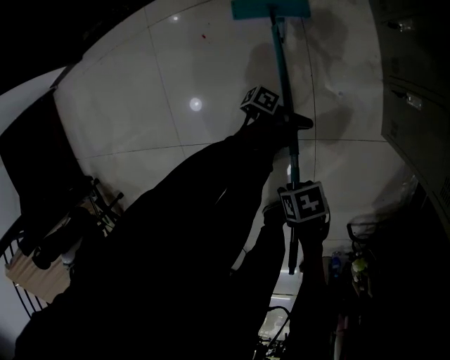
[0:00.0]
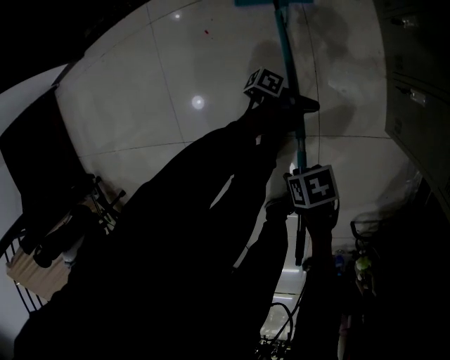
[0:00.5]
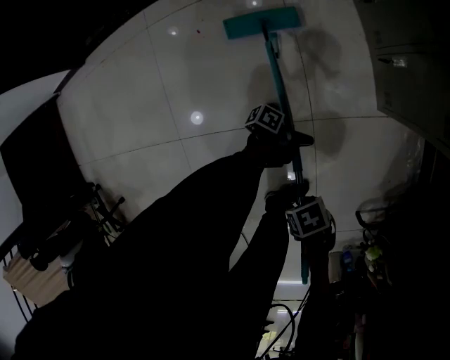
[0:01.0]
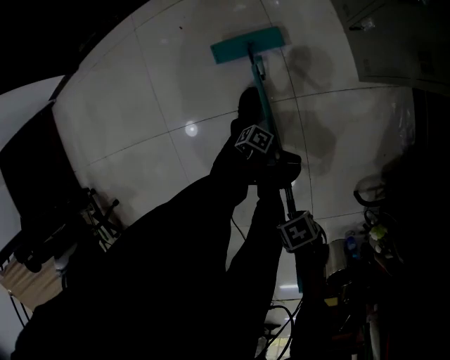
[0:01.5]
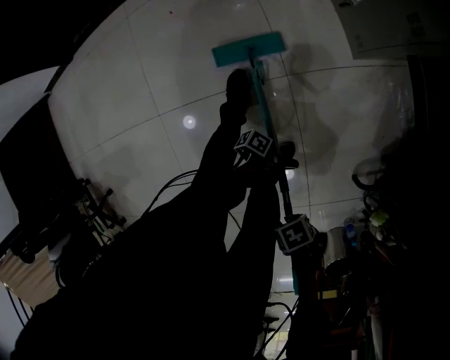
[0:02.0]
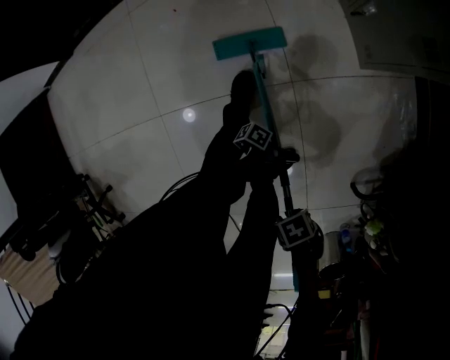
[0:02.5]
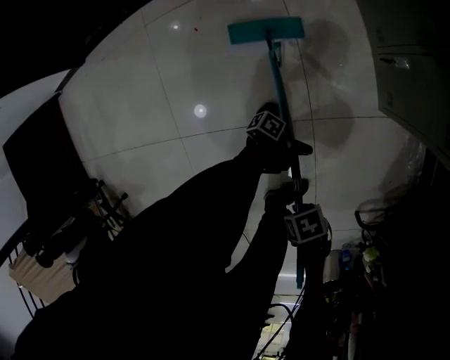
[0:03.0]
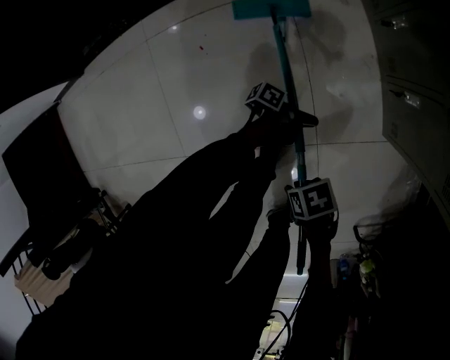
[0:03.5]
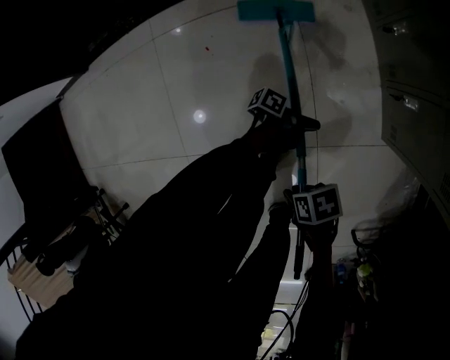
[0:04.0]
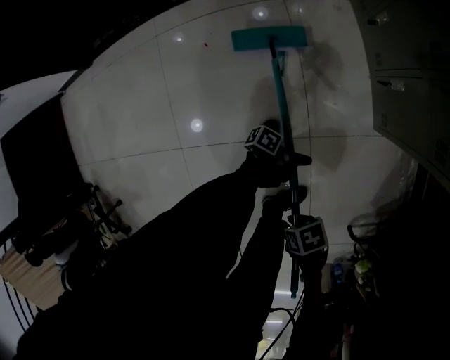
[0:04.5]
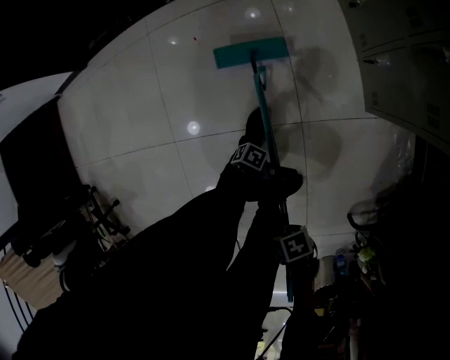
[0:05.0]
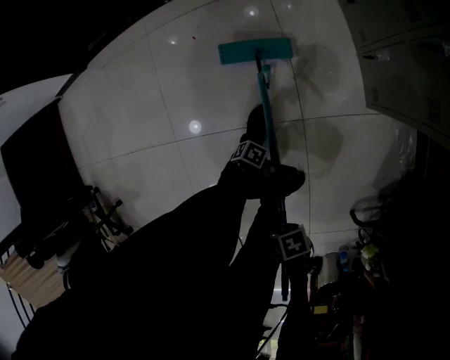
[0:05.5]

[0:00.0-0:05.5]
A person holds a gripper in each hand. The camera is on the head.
0:00.0 to 0:02.0: The pair of grippers is taken forward and to the left, some 50 cm.
0:02.0 to 0:03.5: The two grippers travel together, backward and to the right, roughly 50 cm.
0:03.5 to 0:05.5: Both grippers travel together to the left and forward, roughly 30 cm.

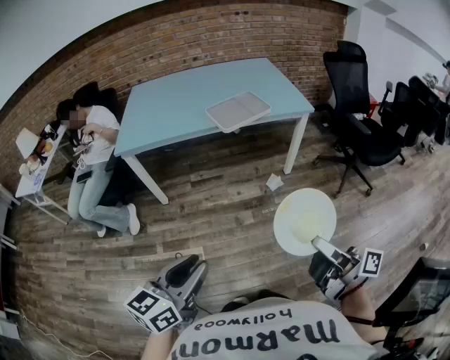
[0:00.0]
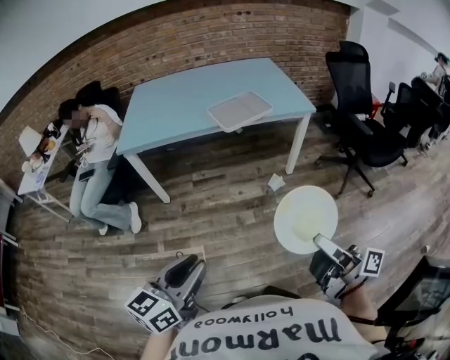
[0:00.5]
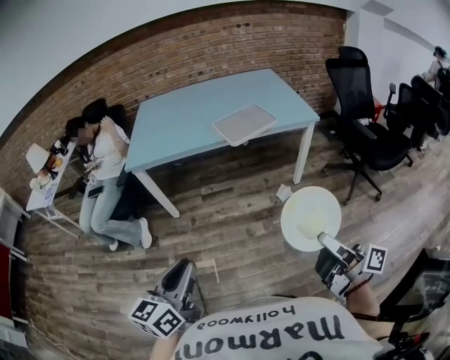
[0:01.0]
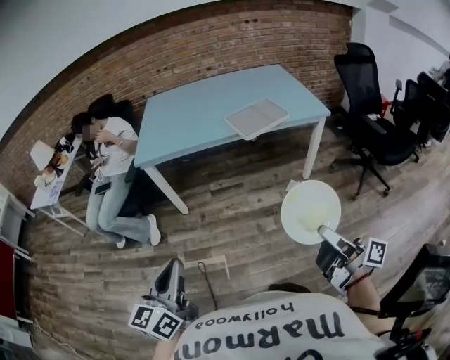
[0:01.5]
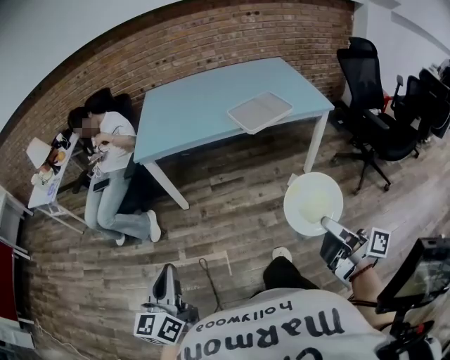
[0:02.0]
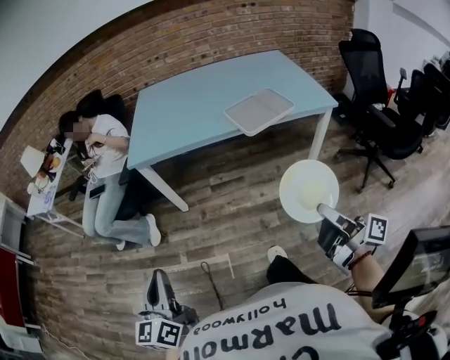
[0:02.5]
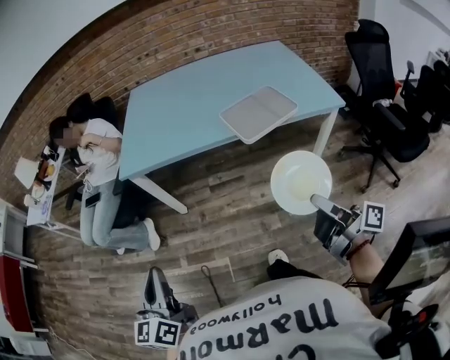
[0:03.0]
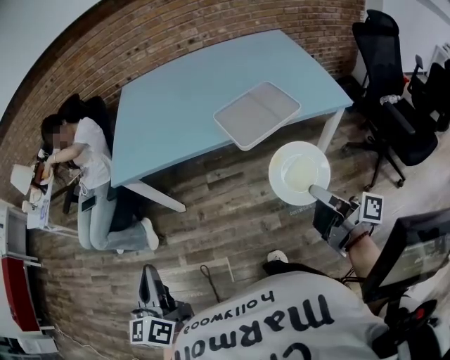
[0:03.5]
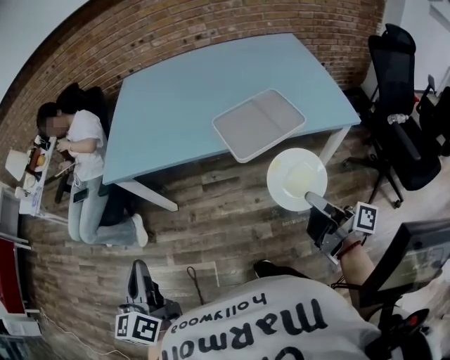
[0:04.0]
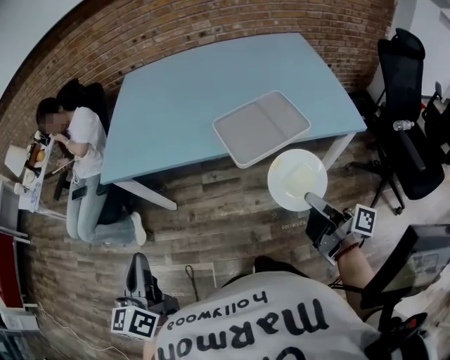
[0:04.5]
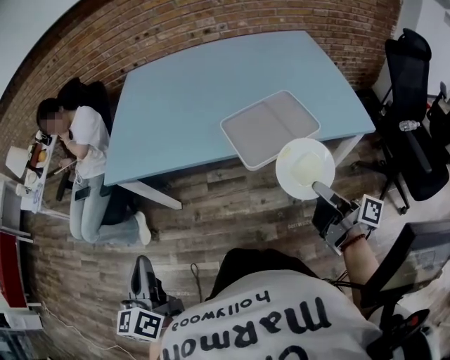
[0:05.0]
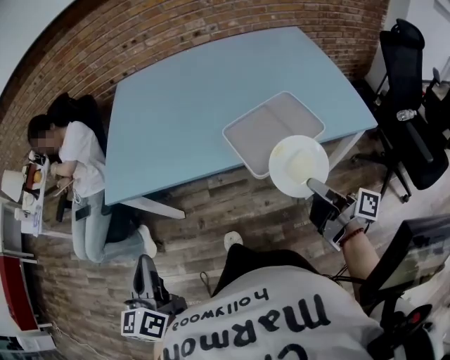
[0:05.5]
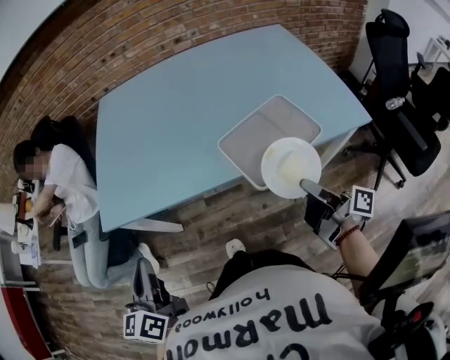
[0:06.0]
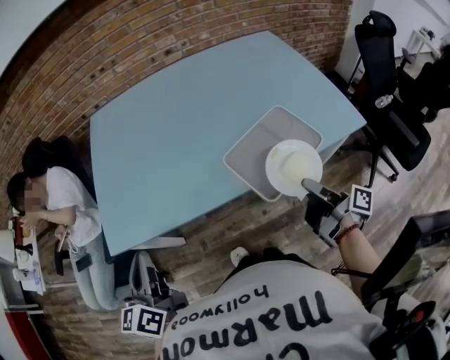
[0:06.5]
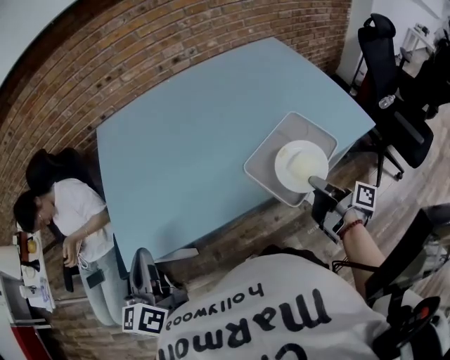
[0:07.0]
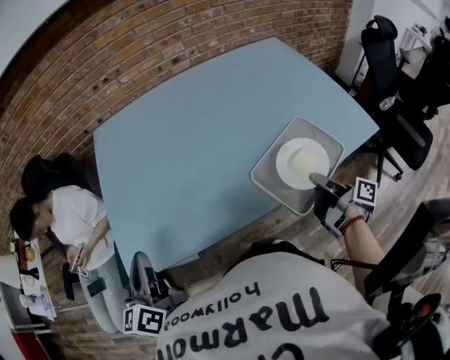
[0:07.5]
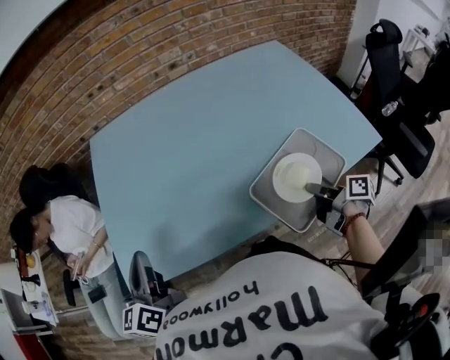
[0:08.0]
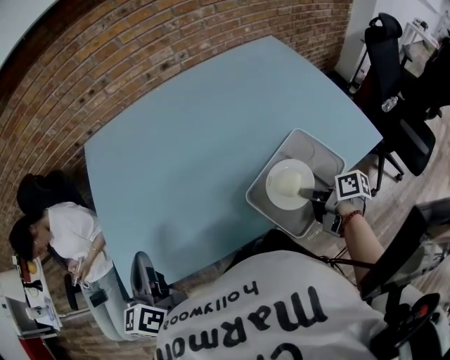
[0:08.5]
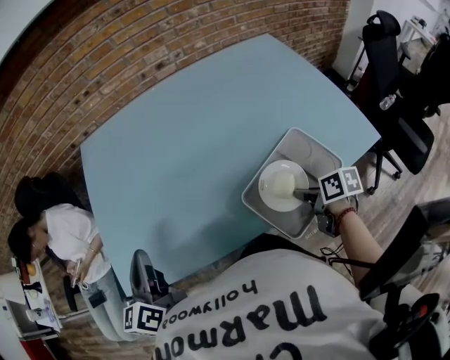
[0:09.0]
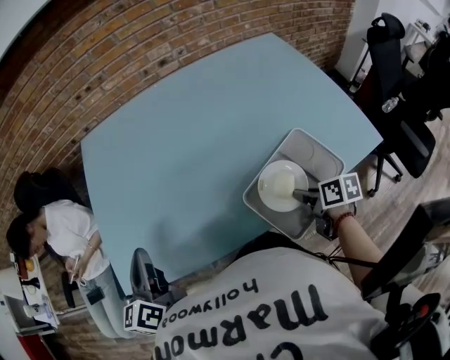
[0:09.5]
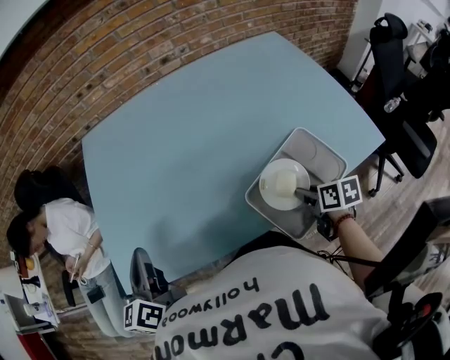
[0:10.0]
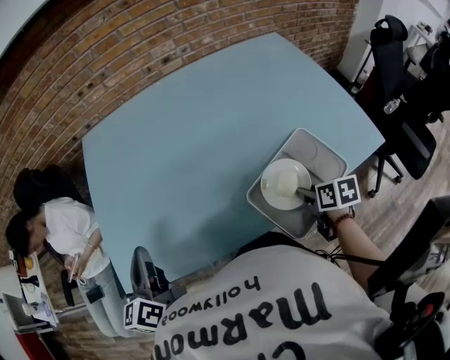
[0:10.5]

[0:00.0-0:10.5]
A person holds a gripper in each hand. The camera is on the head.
0:00.0 to 0:02.0: The left gripper shifts about 20 cm to the left, rotates some 30 degrees, and closes its fingers, while the right gripper travels forward and to the left by roughly 10 cm.
0:02.0 to 0:04.0: The two grippers go some 35 cm forward and to the right.
0:04.0 to 0:06.5: The right gripper heads forward, covering approximately 20 cm. Meanwhile the left gripper goes approximately 30 cm forward.
0:06.5 to 0:08.5: The left gripper heads forward, covering some 15 cm, while the right gripper moves forward and downward, approximately 15 cm, and angles its fingers downward, by roughly 30 degrees.
0:08.5 to 0:10.5: The right gripper changes its angle by some 40 degrees.

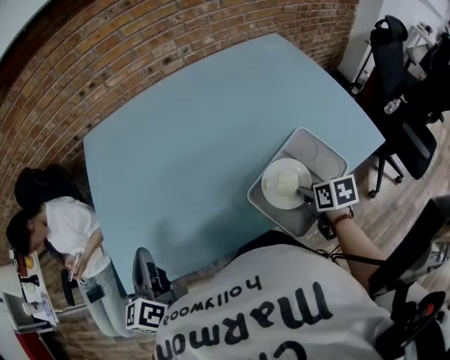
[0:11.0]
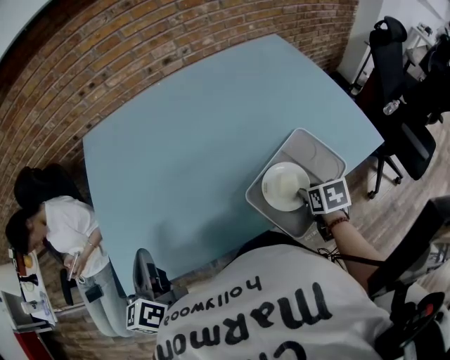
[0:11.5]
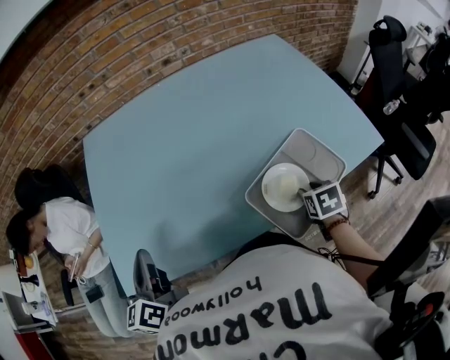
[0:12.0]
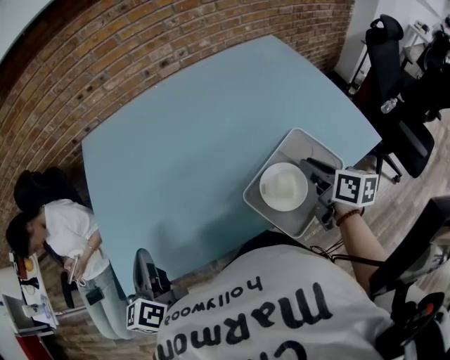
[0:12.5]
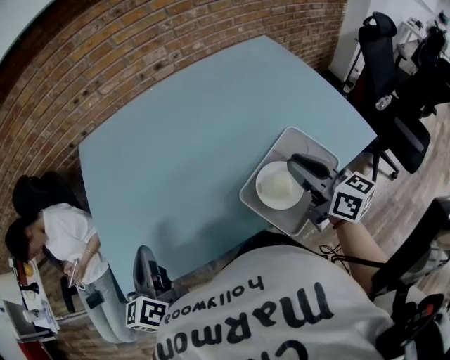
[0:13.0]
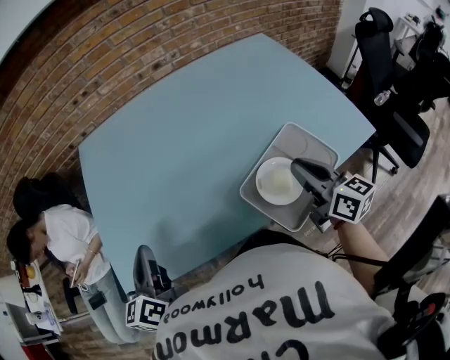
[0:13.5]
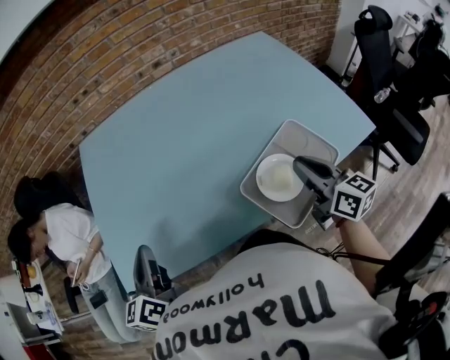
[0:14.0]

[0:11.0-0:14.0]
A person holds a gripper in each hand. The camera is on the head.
0:11.0 to 0:12.5: The right gripper moves upward, about 10 cm, and points its fingers roughly 30 degrees further upward.
0:12.5 to 0:14.0: The right gripper moves approximately 5 cm, and changes its angle by some 20 degrees.

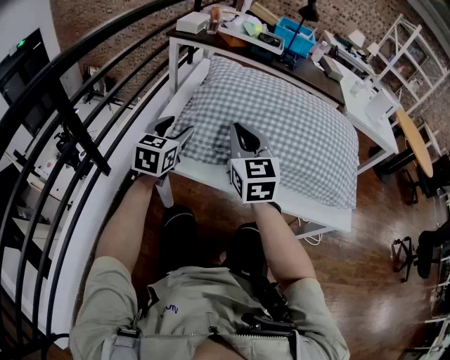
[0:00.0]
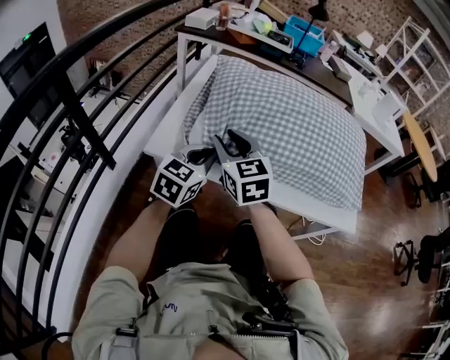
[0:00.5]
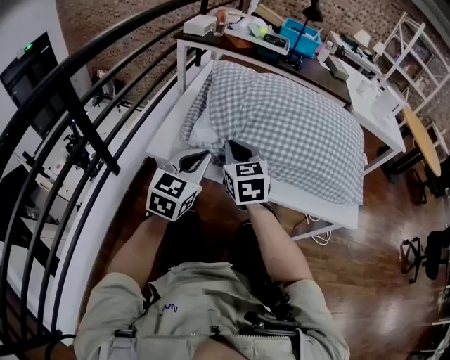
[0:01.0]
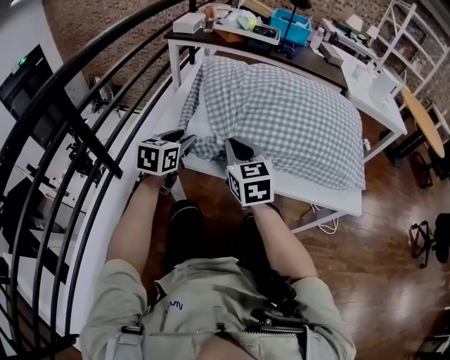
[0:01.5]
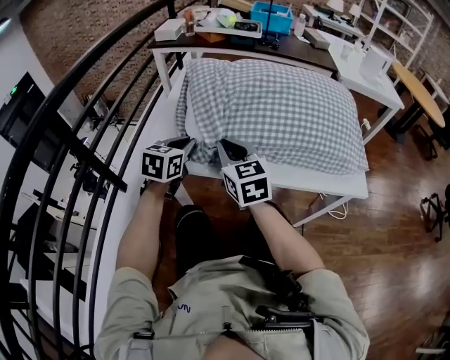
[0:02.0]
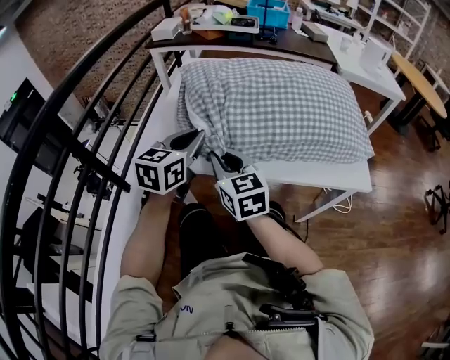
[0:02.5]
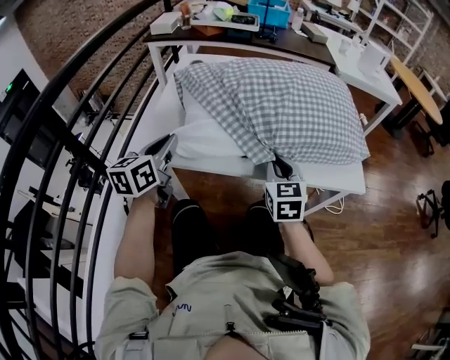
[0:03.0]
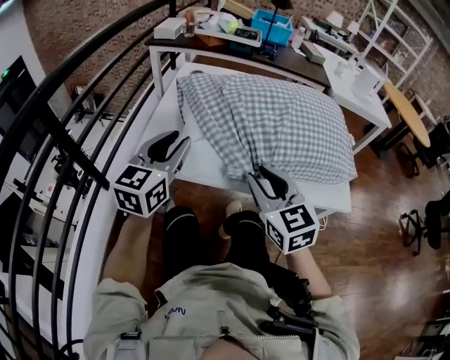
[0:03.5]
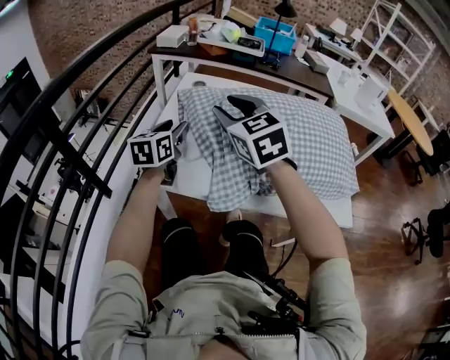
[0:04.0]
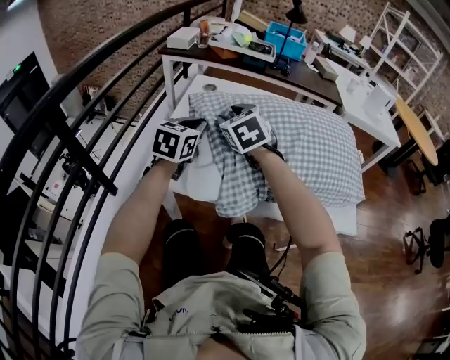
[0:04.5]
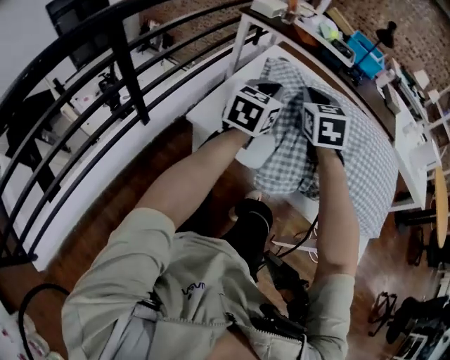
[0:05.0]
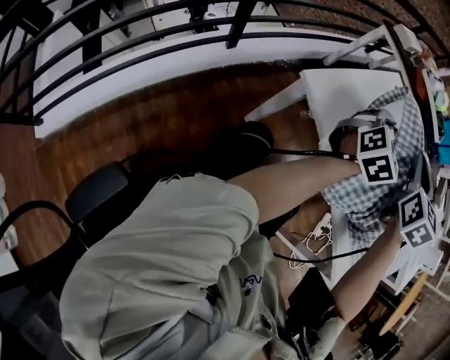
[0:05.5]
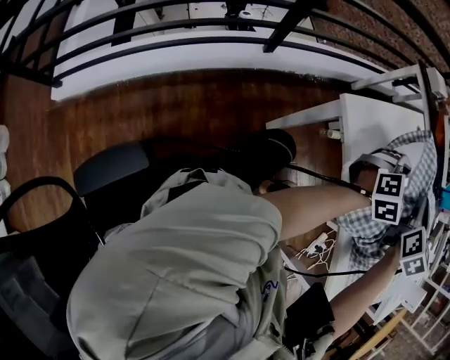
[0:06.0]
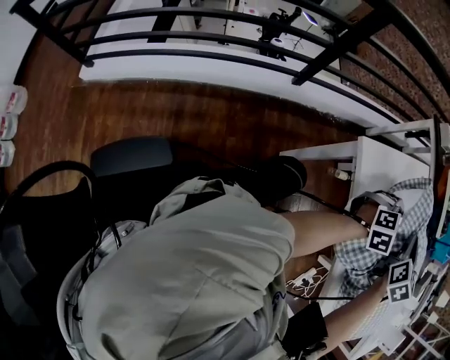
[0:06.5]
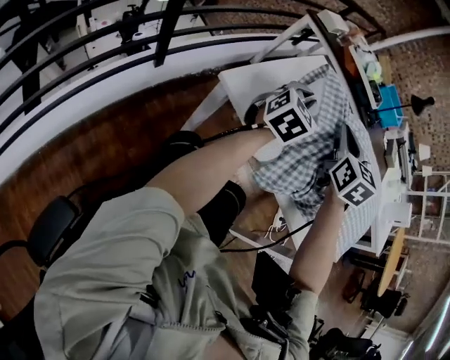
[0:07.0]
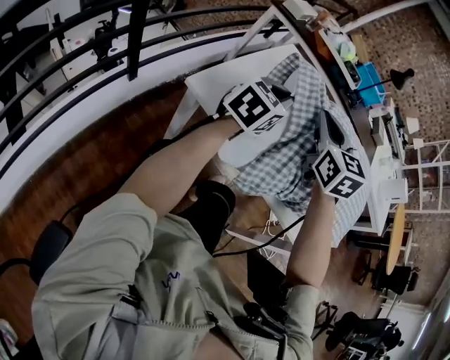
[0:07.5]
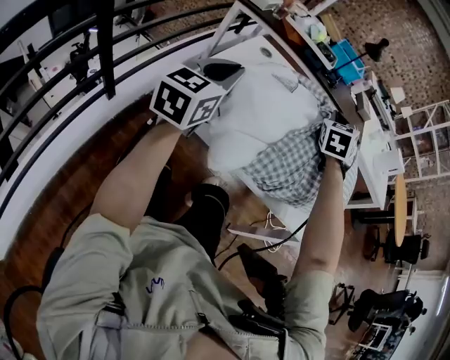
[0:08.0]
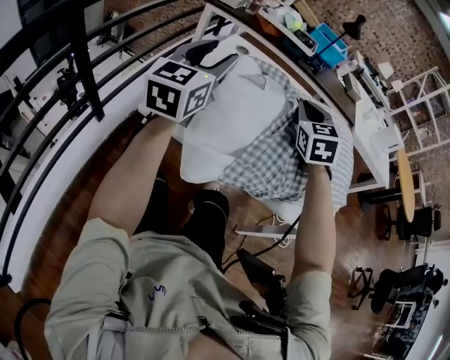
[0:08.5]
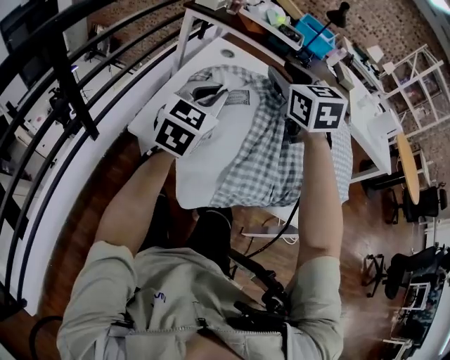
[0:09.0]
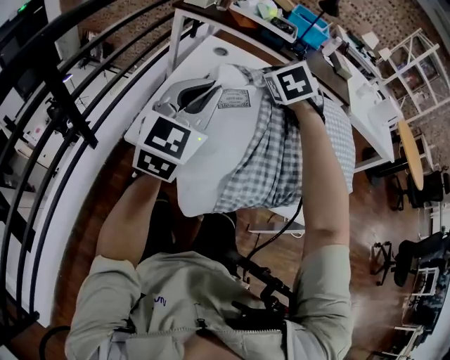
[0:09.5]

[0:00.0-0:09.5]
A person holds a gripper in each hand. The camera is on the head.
0:00.0 to 0:02.0: The right gripper travels downward by approximately 5 cm, and opens, then closes again; the left gripper heads to the right, covering approximately 5 cm, and closes up.
0:02.0 to 0:04.0: The left gripper shifts approximately 10 cm forward and upward, swivels roughly 20 degrees, and opens its fingers, while the right gripper heads upward and forward, covering roughly 15 cm, turns by about 20 degrees, and opens up.
0:04.0 to 0:05.5: The right gripper moves about 10 cm downward and comes back, and closes, while the left gripper goes about 10 cm to the right, swivels approximately 20 degrees, and closes its fingers.
0:05.5 to 0:07.5: The left gripper changes its angle by approximately 20 degrees.
0:07.5 to 0:09.5: The left gripper swings up and down, about 10 cm each way, with 2 reversals, rotates approximately 20 degrees, and opens and closes again. The right gripper travels forward by some 15 cm, moves about 15 cm to the right and comes back, changes its angle by some 40 degrees, and opens and closes again.
